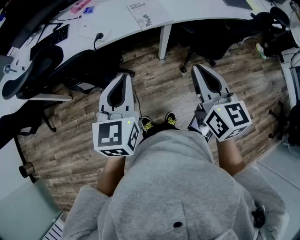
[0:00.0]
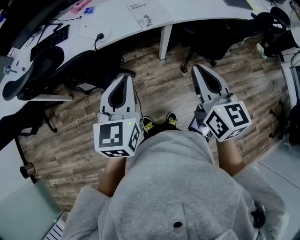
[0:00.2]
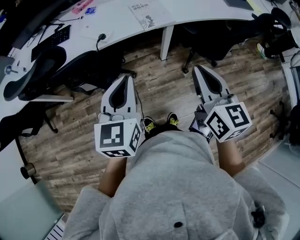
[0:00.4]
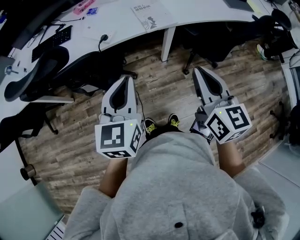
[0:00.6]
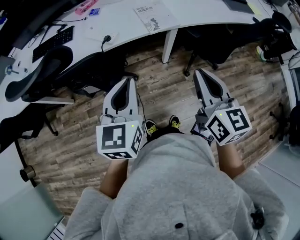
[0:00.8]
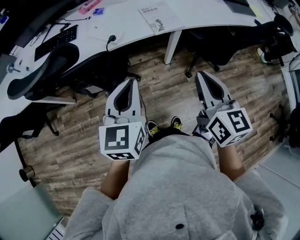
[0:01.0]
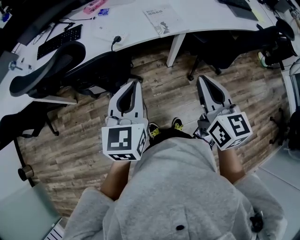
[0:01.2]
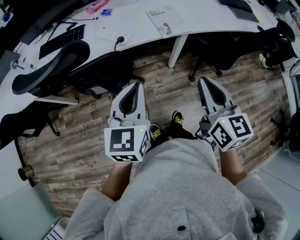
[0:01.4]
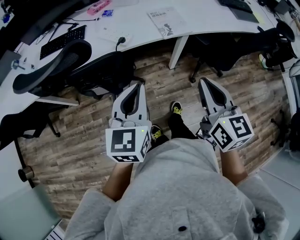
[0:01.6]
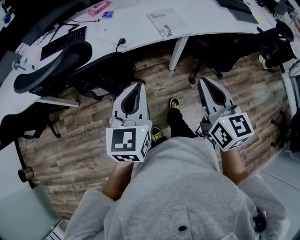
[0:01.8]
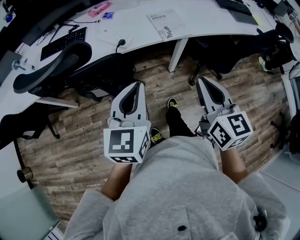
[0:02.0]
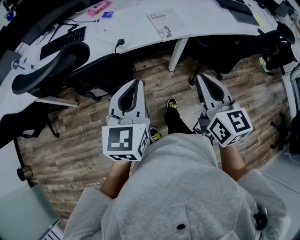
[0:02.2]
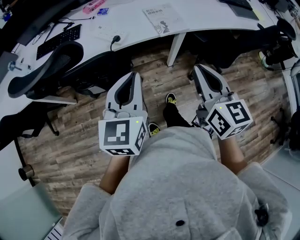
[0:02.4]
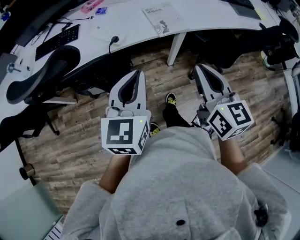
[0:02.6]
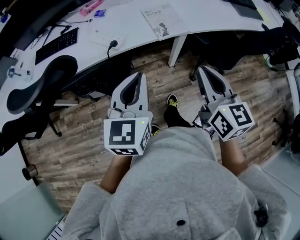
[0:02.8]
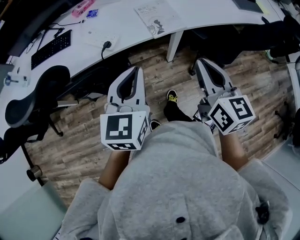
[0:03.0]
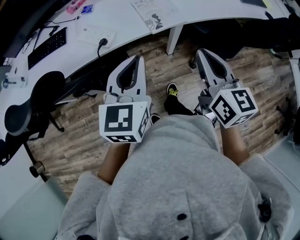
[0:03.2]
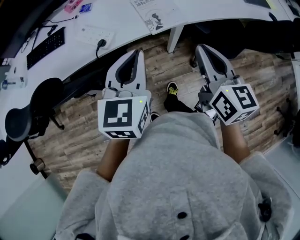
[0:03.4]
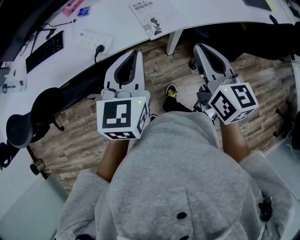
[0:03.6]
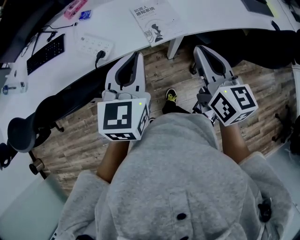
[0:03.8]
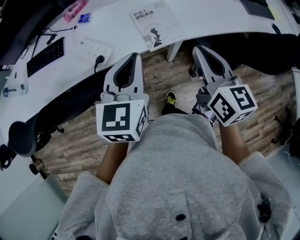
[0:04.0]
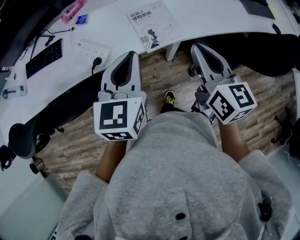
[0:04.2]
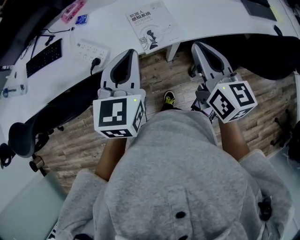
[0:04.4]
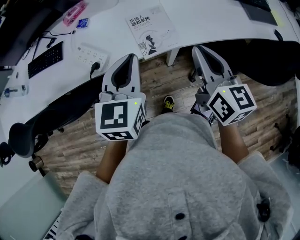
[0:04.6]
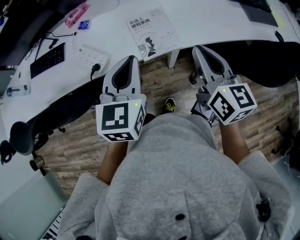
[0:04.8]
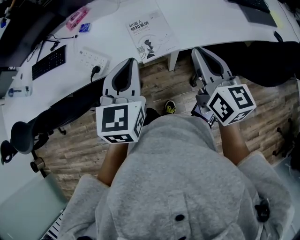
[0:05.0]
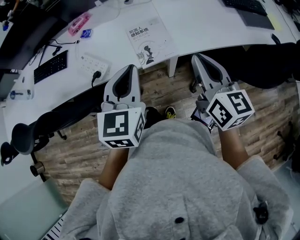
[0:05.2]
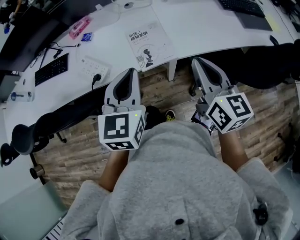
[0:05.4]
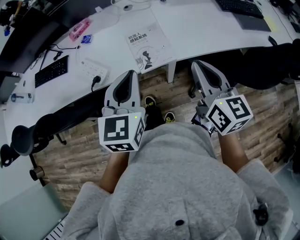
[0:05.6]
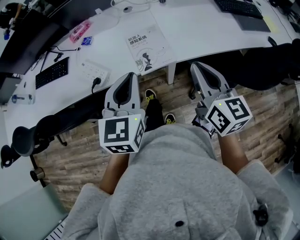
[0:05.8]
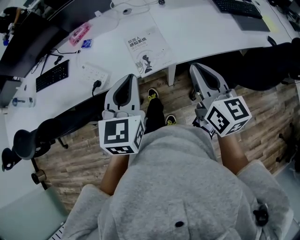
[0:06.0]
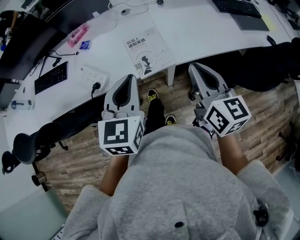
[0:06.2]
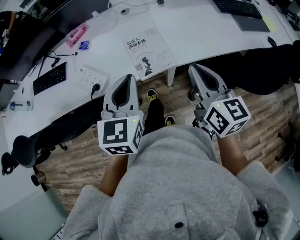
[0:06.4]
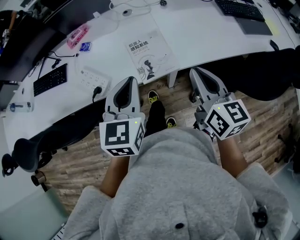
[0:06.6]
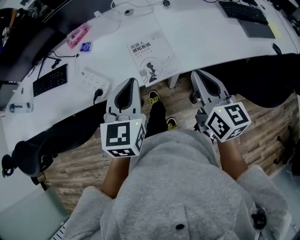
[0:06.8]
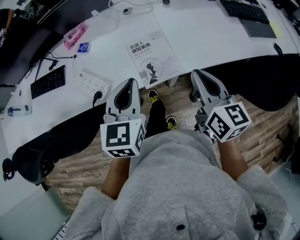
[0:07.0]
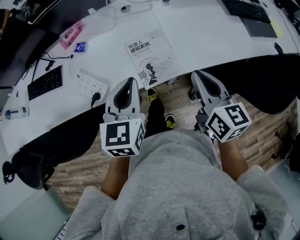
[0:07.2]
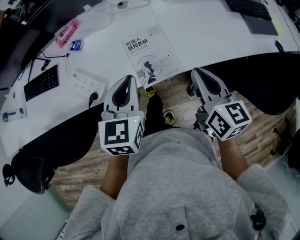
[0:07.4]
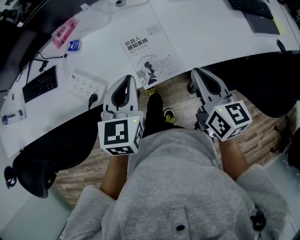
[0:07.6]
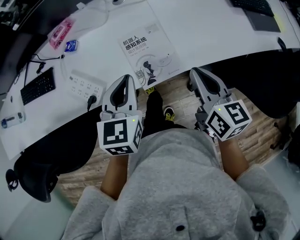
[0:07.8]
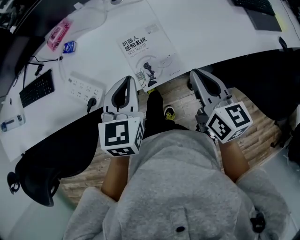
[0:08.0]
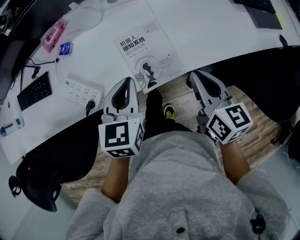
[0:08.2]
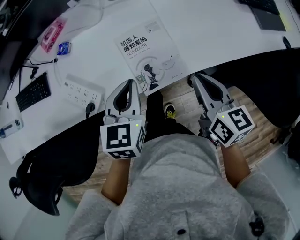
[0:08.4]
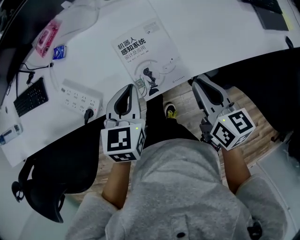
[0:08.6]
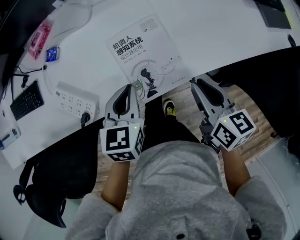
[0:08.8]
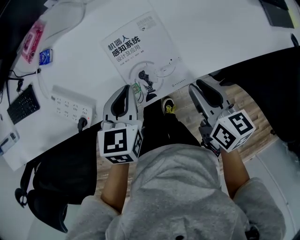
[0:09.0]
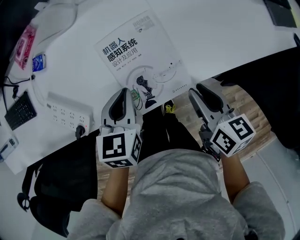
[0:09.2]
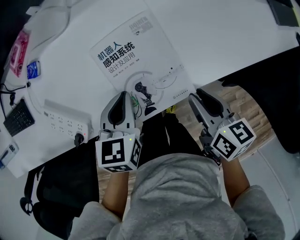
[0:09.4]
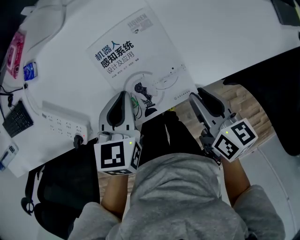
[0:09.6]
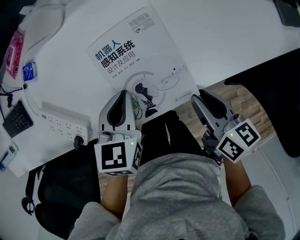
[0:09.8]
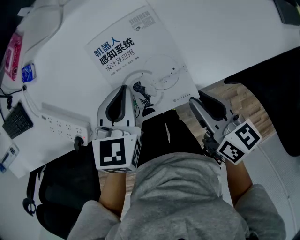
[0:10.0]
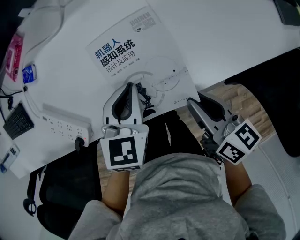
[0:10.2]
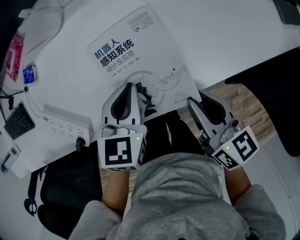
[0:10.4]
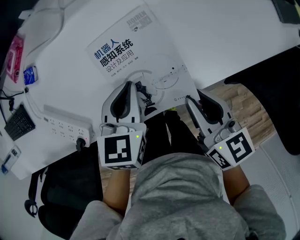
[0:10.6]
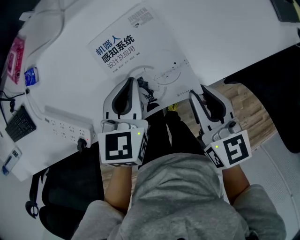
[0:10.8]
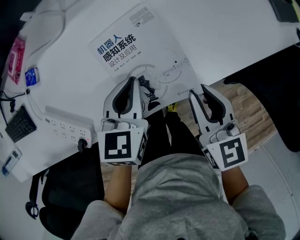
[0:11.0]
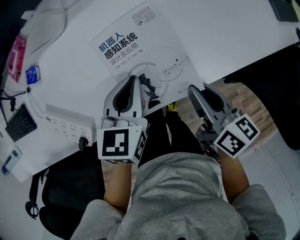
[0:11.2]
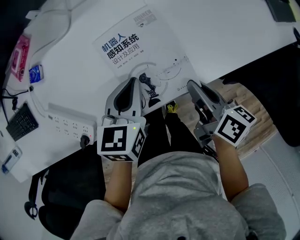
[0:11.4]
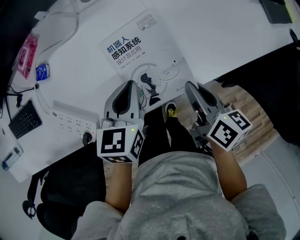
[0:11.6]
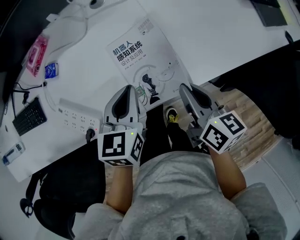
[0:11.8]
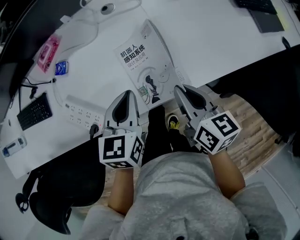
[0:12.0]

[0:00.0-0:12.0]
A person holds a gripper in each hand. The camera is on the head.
0:00.0 to 0:01.6: Both grippers move to the left, some 10 cm.
0:01.6 to 0:03.0: Both grippers travel together forward and to the right, some 15 cm.
0:03.0 to 0:04.4: The grippers both shift forward by approximately 15 cm.
0:04.4 to 0:06.0: There are only small adjustments of the grippers.
0:06.0 to 0:07.6: The grippers both shift forward and downward by roughly 15 cm.
0:07.6 to 0:09.0: The grippers both shift downward by approximately 15 cm. The right gripper opens up.
0:09.0 to 0:10.4: The left gripper ends up about 5 cm from where it was.
0:10.4 to 0:12.0: The right gripper goes approximately 5 cm upward; the left gripper goes roughly 10 cm upward.

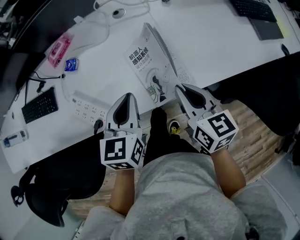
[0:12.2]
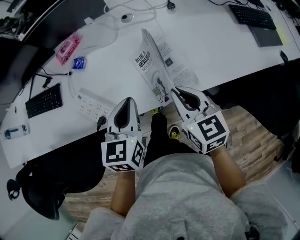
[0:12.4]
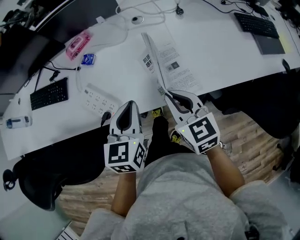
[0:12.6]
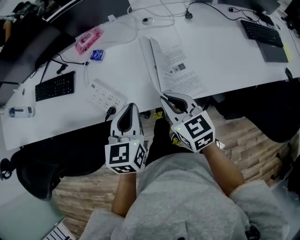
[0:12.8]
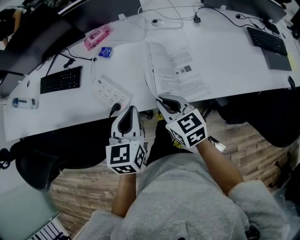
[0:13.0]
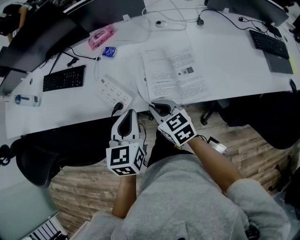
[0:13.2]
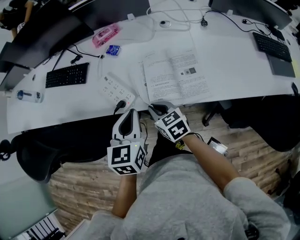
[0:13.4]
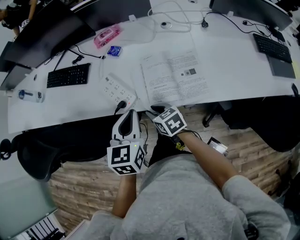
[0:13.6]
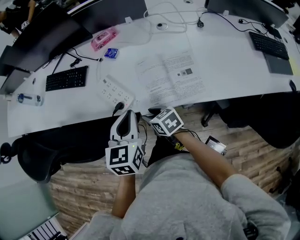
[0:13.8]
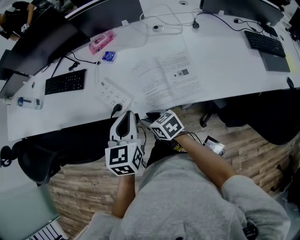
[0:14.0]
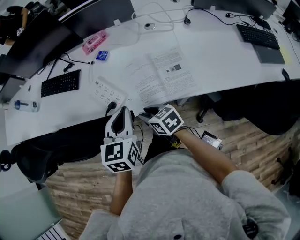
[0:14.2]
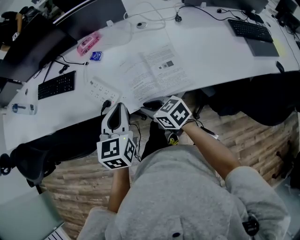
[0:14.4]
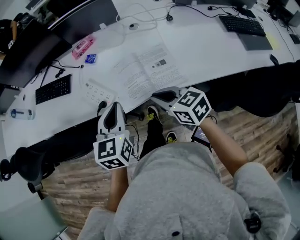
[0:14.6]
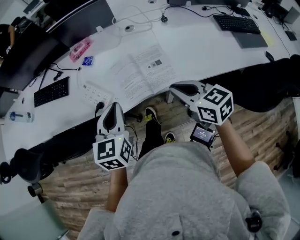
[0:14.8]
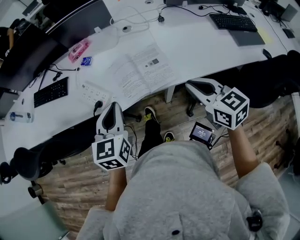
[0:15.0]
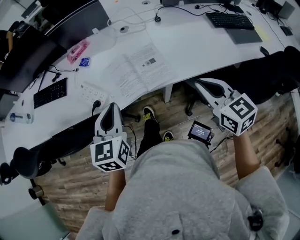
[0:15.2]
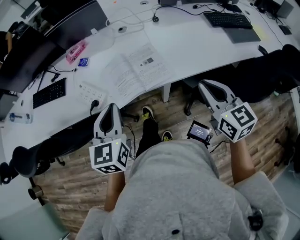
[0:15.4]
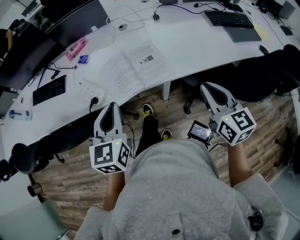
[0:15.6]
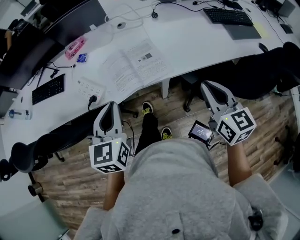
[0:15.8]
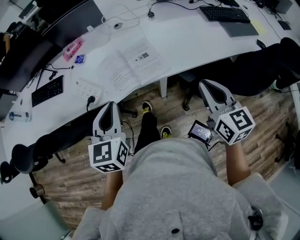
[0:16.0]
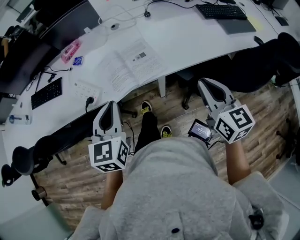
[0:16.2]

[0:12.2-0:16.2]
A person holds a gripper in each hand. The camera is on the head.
0:12.2 to 0:13.6: The left gripper changes place by approximately 15 cm, while the right gripper shifts by roughly 25 cm, and rotates approximately 40 degrees.
0:13.6 to 0:14.8: The right gripper heads to the right, upward and backward, covering some 25 cm. The left gripper moves some 5 cm.
0:14.8 to 0:16.2: The left gripper goes about 5 cm backward, while the right gripper heads to the right and backward, covering approximately 15 cm, and turns by about 30 degrees.

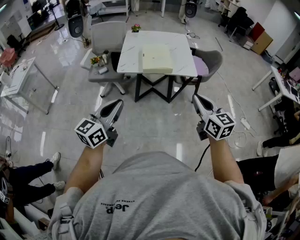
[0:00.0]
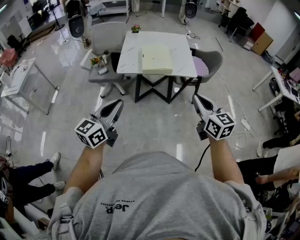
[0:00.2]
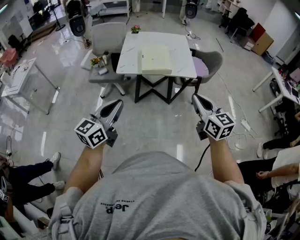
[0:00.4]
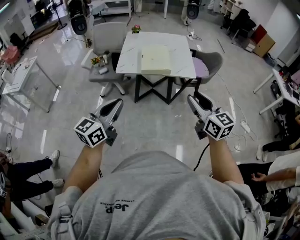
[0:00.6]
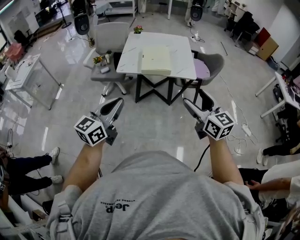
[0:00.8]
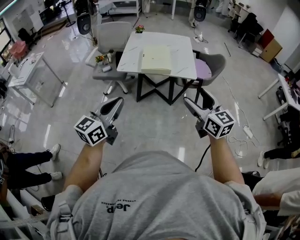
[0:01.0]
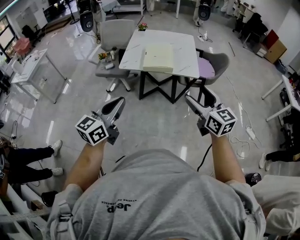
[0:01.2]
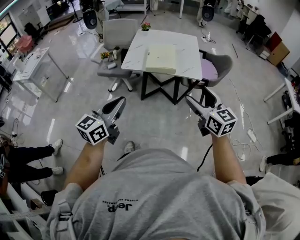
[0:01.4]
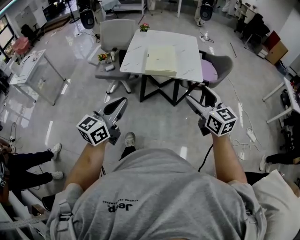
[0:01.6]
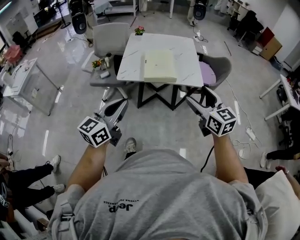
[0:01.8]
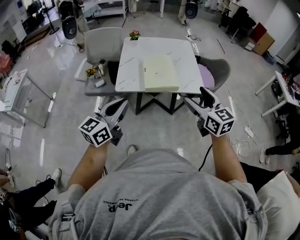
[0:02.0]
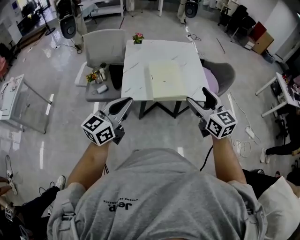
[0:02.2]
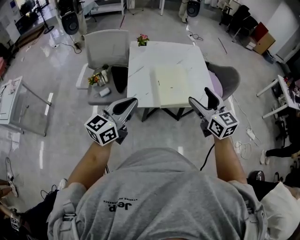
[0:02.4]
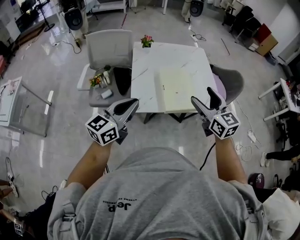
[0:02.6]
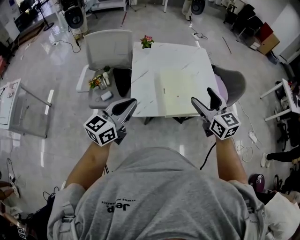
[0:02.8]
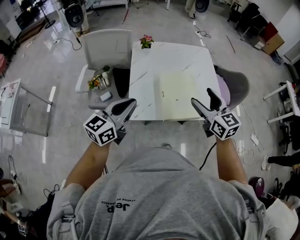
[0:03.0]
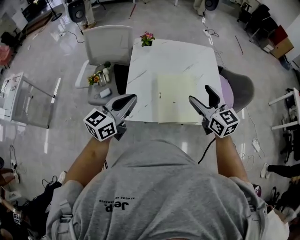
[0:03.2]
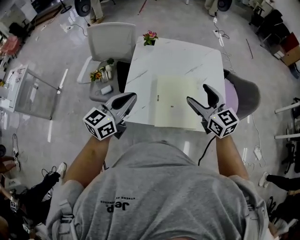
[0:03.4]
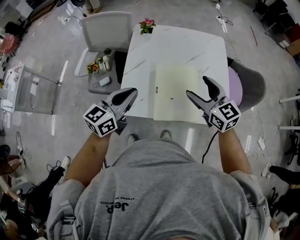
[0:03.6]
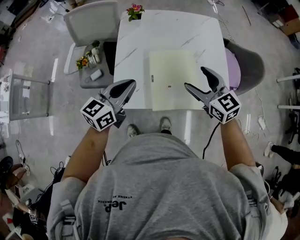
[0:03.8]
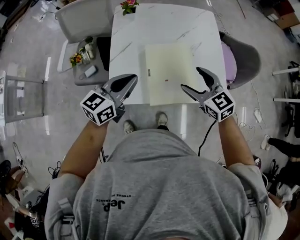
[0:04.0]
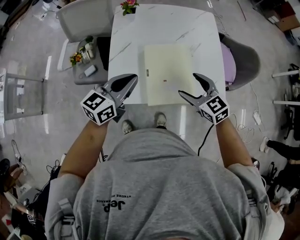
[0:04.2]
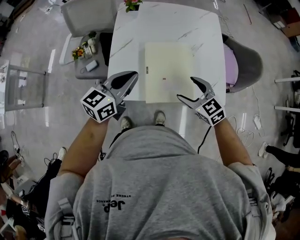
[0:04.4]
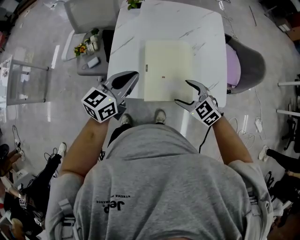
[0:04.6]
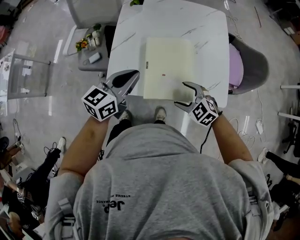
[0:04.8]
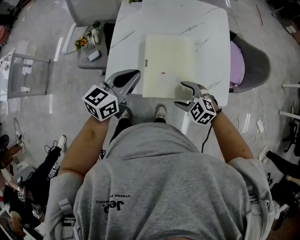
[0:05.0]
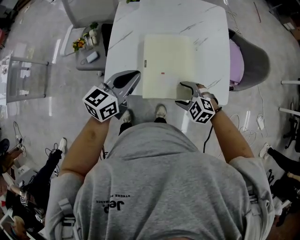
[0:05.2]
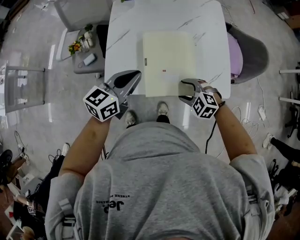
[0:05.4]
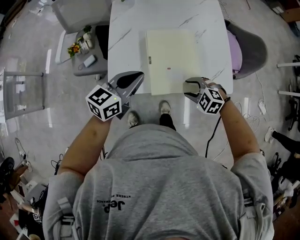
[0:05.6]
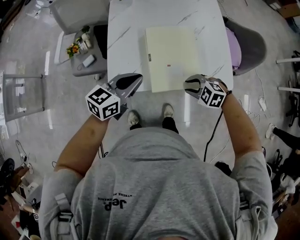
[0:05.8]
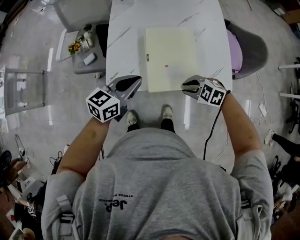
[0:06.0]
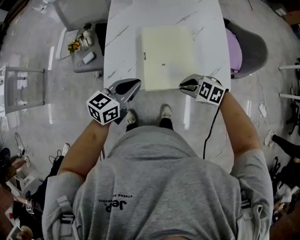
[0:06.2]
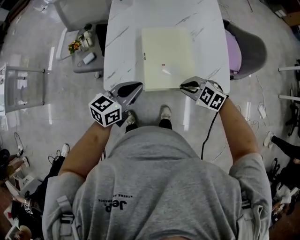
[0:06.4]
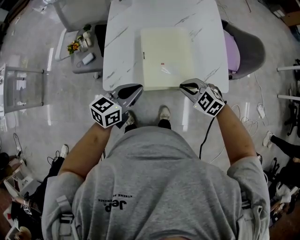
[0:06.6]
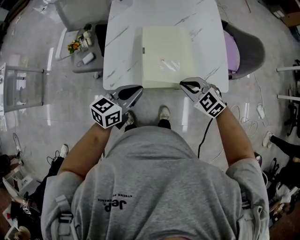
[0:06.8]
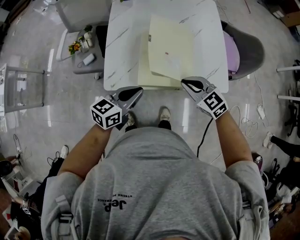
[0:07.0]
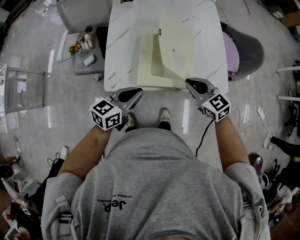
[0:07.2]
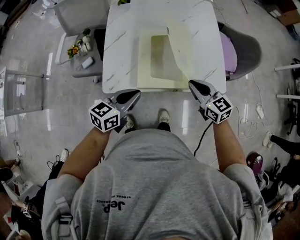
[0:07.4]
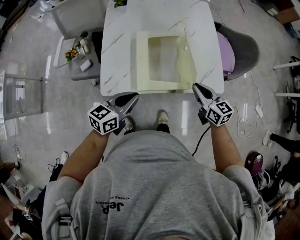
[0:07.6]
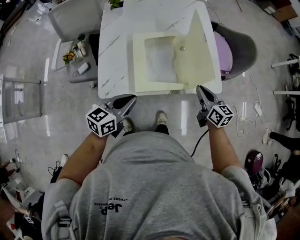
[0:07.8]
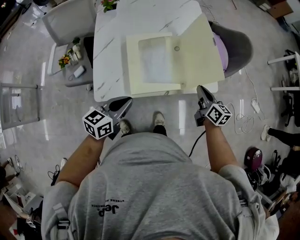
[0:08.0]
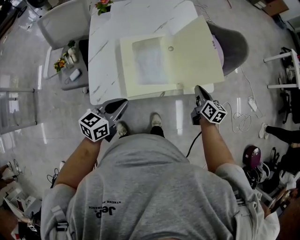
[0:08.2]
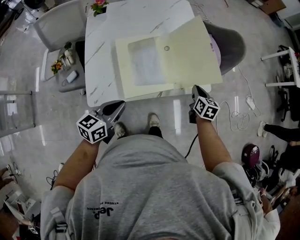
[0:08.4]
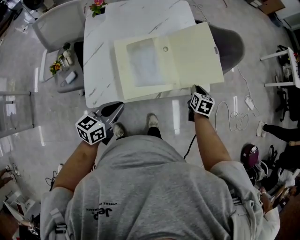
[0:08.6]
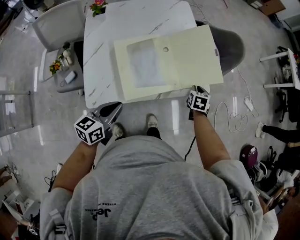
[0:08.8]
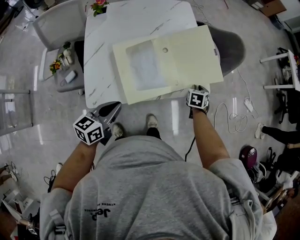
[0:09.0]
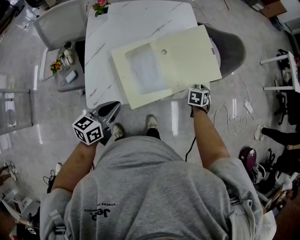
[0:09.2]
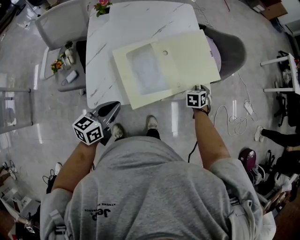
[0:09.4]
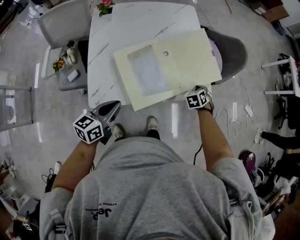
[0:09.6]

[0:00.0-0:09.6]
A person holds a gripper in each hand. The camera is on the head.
0:00.0 to 0:01.6: The left gripper shifts some 5 cm to the right. Meanwhile the right gripper shifts roughly 5 cm forward, and opens.
0:01.6 to 0:03.2: Both grippers are carried forward, some 50 cm.
0:03.2 to 0:04.8: The right gripper goes some 25 cm downward, and tips its fingers downward by roughly 30 degrees. Meanwhile the left gripper heads to the right and downward, covering about 15 cm.
0:04.8 to 0:06.4: The right gripper closes up. Meanwhile the left gripper heads downward, covering some 5 cm.
0:06.4 to 0:08.0: The right gripper changes place by about 15 cm, and changes its angle by some 90 degrees.
0:08.0 to 0:09.6: The right gripper shifts roughly 10 cm downward, and tips its fingers downward by roughly 40 degrees.
